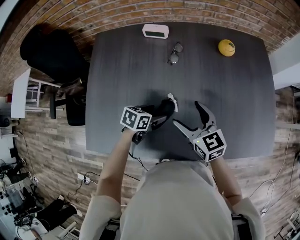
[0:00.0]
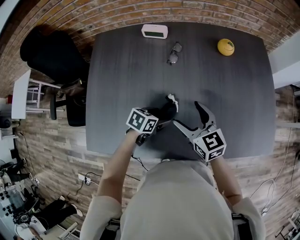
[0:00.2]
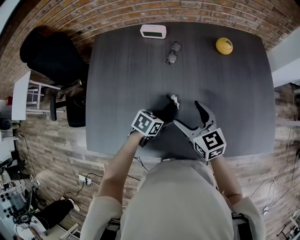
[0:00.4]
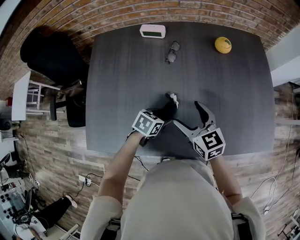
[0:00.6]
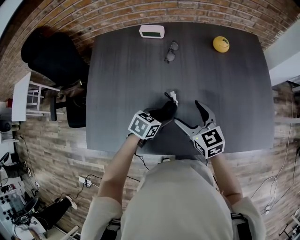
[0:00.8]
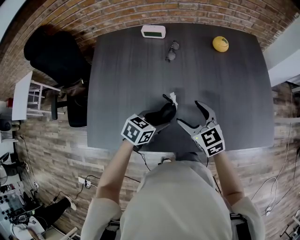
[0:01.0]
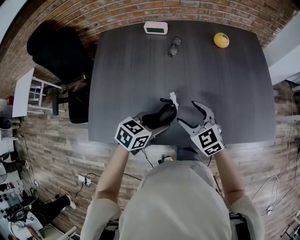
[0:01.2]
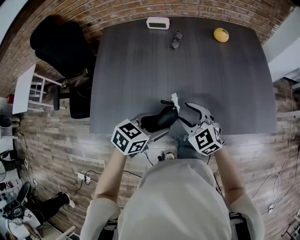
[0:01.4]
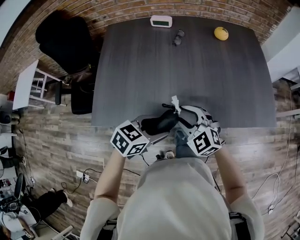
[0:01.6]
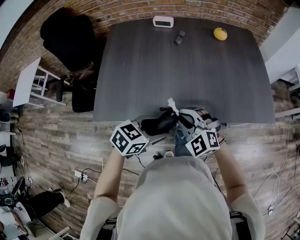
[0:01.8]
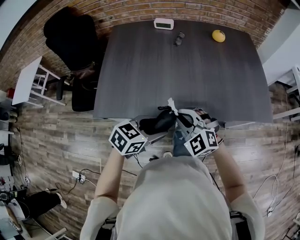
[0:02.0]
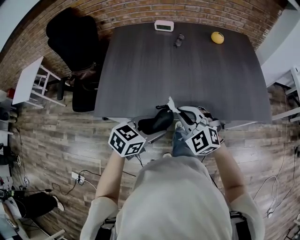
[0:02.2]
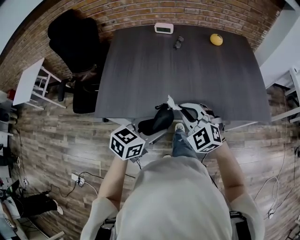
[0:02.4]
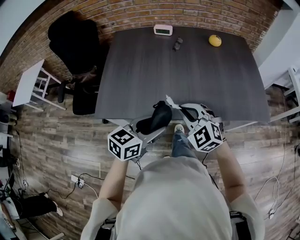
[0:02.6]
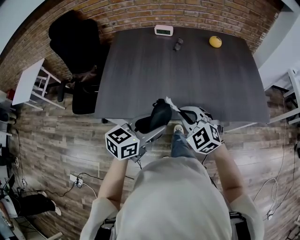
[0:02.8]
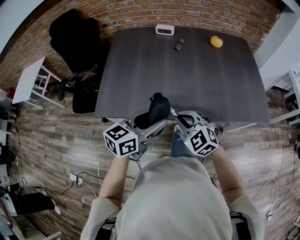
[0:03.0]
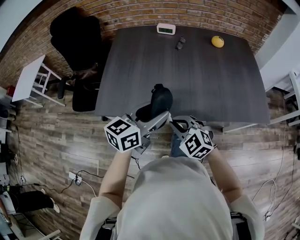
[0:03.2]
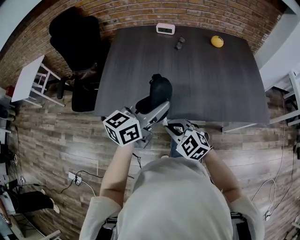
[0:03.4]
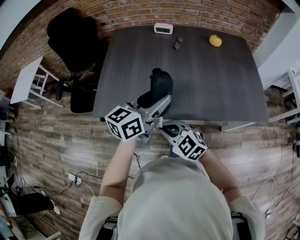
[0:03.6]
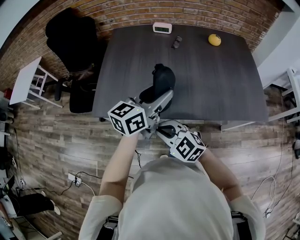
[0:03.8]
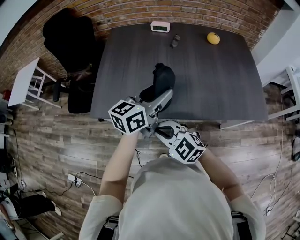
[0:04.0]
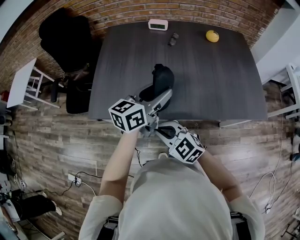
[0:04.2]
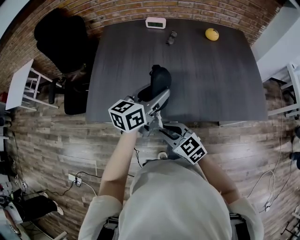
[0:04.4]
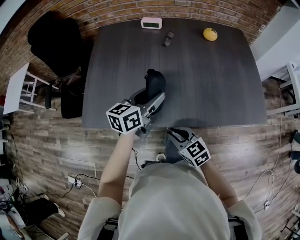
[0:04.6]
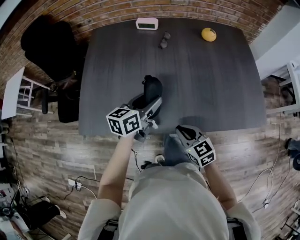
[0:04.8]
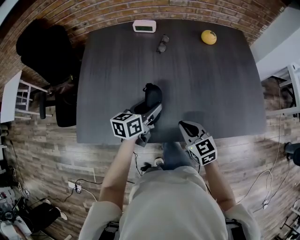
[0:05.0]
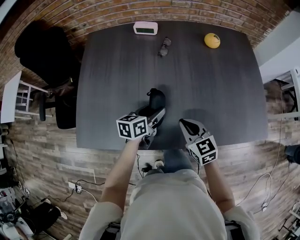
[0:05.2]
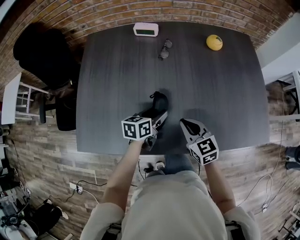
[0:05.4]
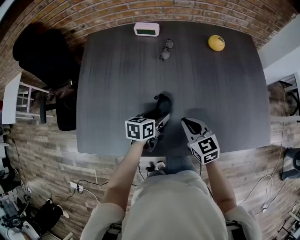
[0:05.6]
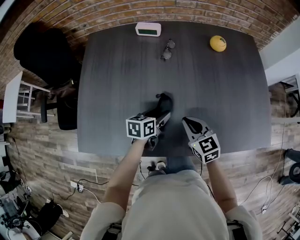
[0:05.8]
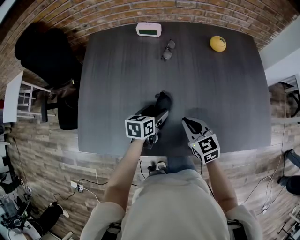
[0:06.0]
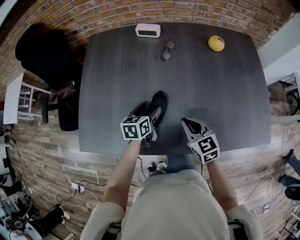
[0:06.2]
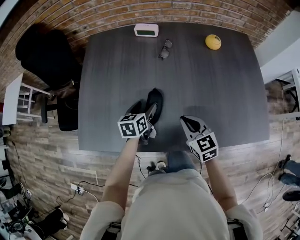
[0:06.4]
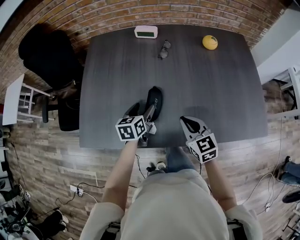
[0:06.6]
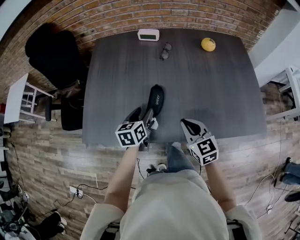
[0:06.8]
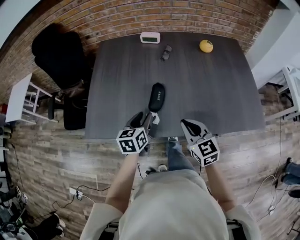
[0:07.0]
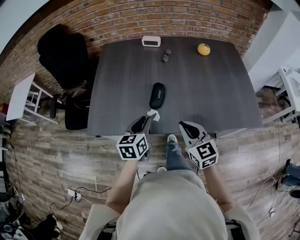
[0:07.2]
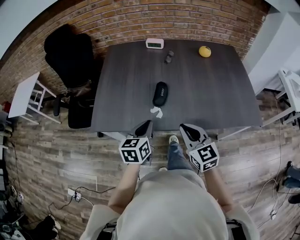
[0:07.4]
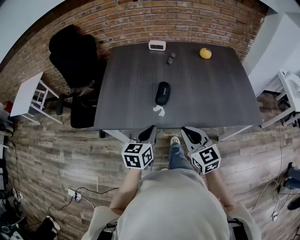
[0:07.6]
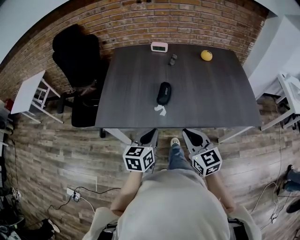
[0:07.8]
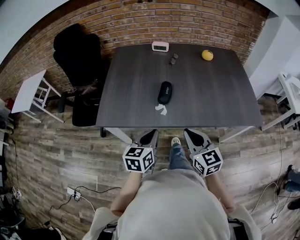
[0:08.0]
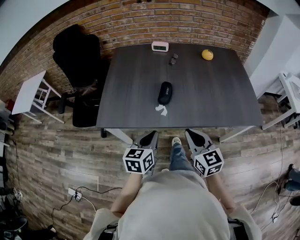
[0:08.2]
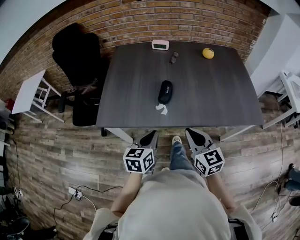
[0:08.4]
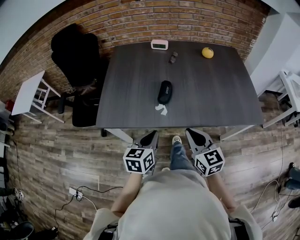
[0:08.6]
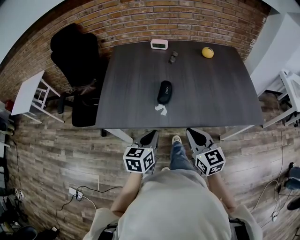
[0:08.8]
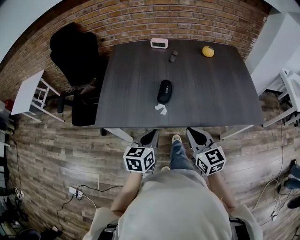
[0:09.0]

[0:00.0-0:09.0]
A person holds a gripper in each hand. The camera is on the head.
0:00.0 to 0:01.6: The right gripper shifts about 20 cm backward, twists approximately 40 degrees counterclockwise, seen from behind, and closes its fingers. The left gripper is displaced backward and upward by about 25 cm, and rotates roughly 20 degrees.
0:01.6 to 0:03.0: The right gripper goes about 10 cm backward, and closes; the left gripper shifts roughly 10 cm upward, and turns by about 30 degrees.
0:03.0 to 0:04.4: The left gripper shifts approximately 15 cm forward. Meanwhile the right gripper shifts about 5 cm downward, reaches approximately 10 cm to the left, then returns, and turns by about 30 degrees.
0:04.4 to 0:06.0: The right gripper moves forward and to the right, some 25 cm, and changes its angle by approximately 20 degrees; the left gripper heads downward and forward, covering roughly 25 cm, and turns by approximately 30 degrees.
0:06.0 to 0:07.6: Both grippers move backward and upward, about 30 cm. The left gripper swivels some 20 degrees, and closes.
0:07.6 to 0:09.0: The grippers make only small movements.

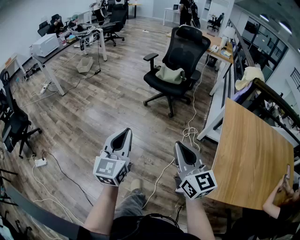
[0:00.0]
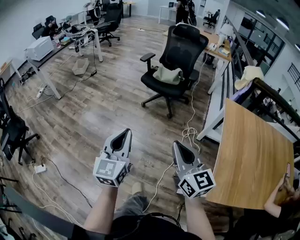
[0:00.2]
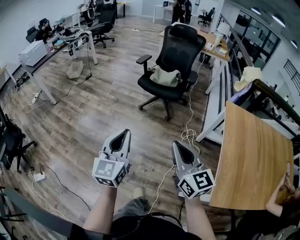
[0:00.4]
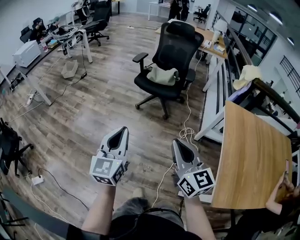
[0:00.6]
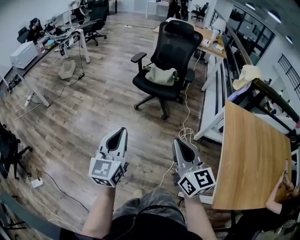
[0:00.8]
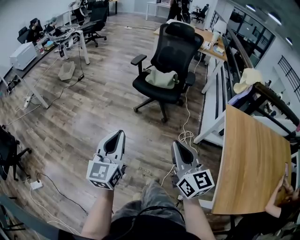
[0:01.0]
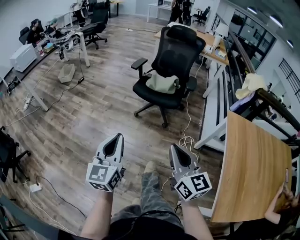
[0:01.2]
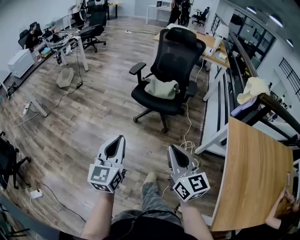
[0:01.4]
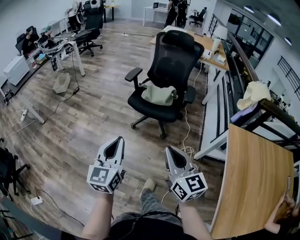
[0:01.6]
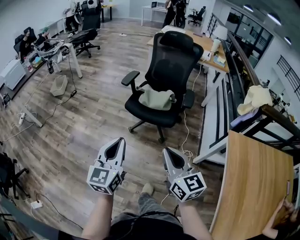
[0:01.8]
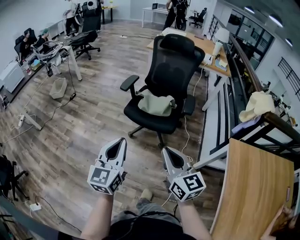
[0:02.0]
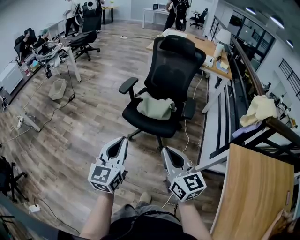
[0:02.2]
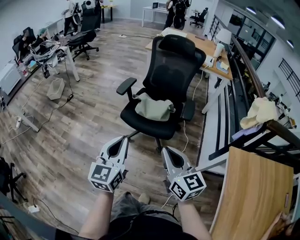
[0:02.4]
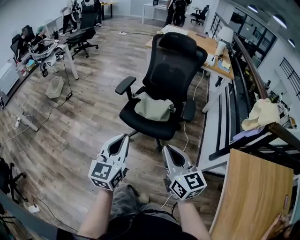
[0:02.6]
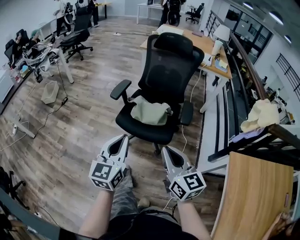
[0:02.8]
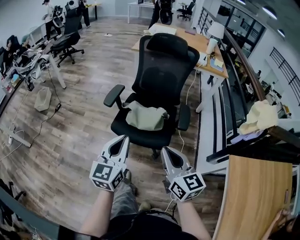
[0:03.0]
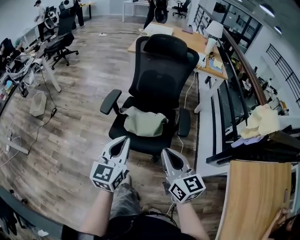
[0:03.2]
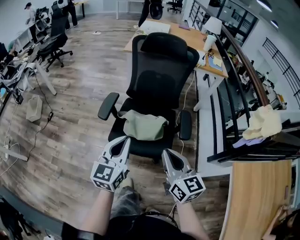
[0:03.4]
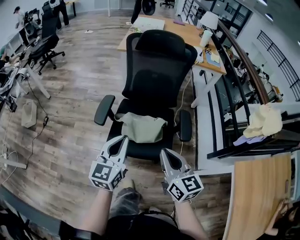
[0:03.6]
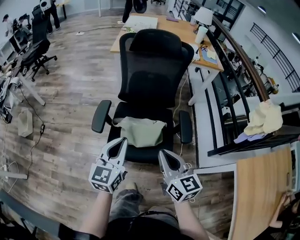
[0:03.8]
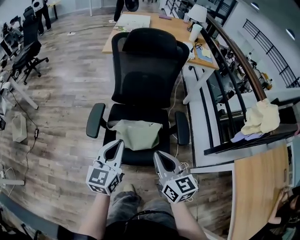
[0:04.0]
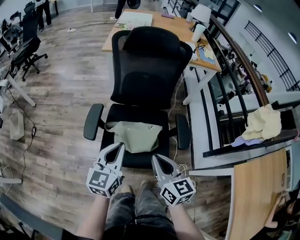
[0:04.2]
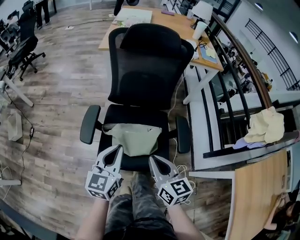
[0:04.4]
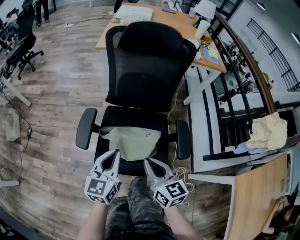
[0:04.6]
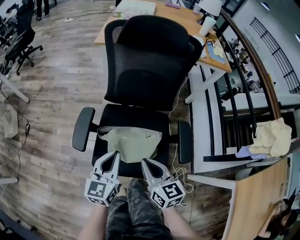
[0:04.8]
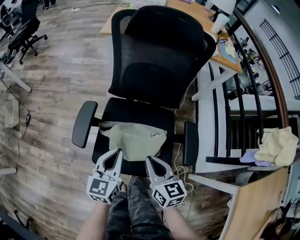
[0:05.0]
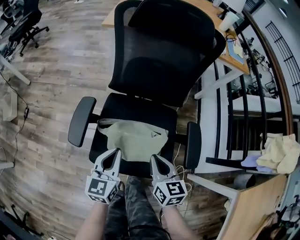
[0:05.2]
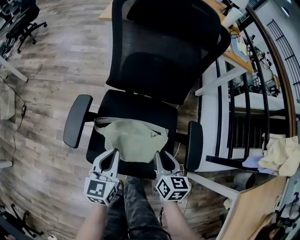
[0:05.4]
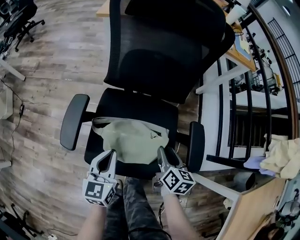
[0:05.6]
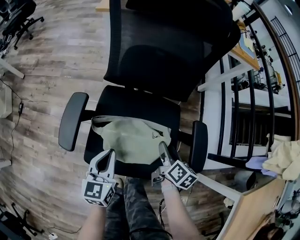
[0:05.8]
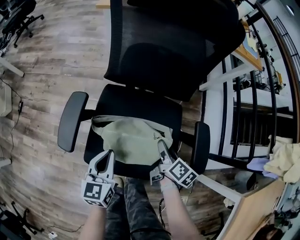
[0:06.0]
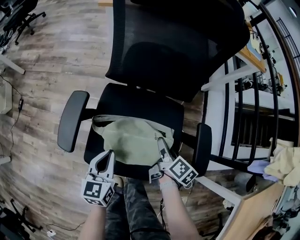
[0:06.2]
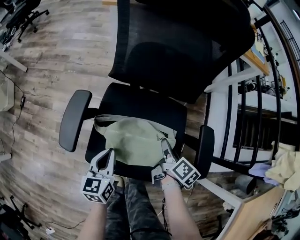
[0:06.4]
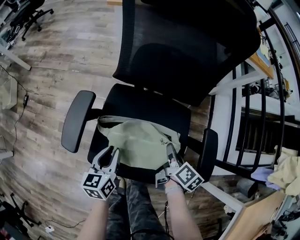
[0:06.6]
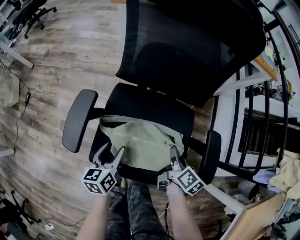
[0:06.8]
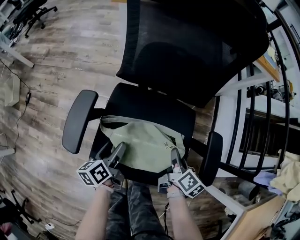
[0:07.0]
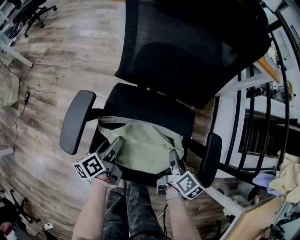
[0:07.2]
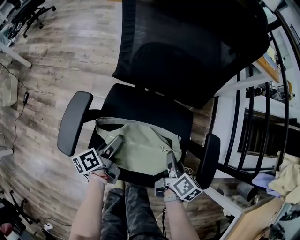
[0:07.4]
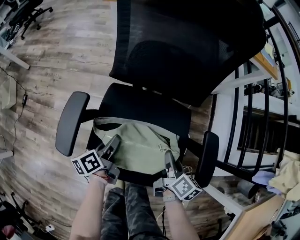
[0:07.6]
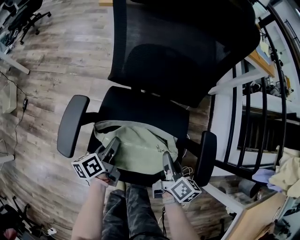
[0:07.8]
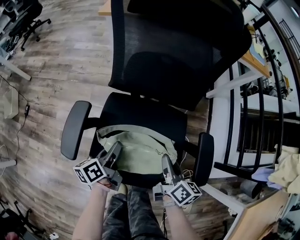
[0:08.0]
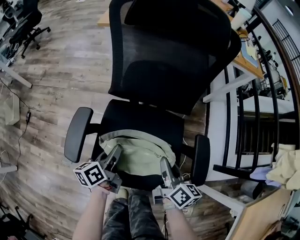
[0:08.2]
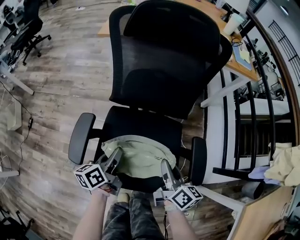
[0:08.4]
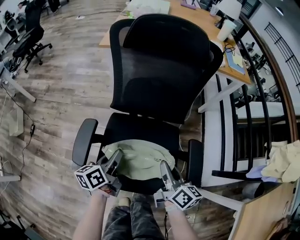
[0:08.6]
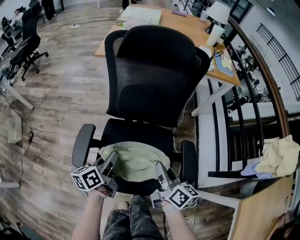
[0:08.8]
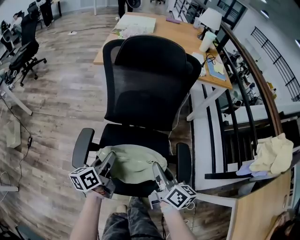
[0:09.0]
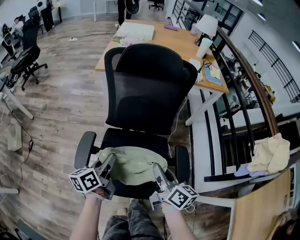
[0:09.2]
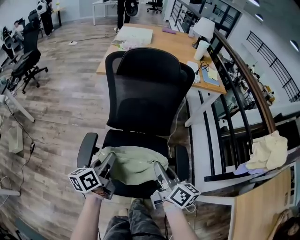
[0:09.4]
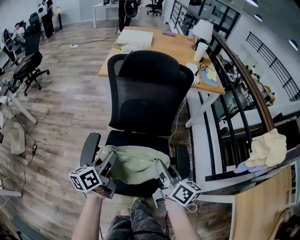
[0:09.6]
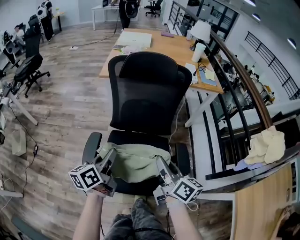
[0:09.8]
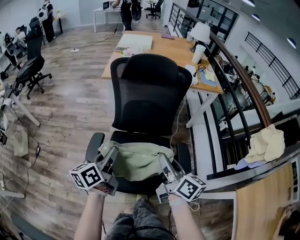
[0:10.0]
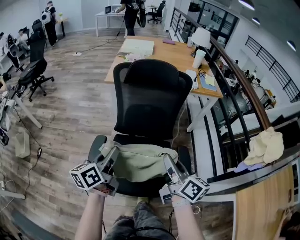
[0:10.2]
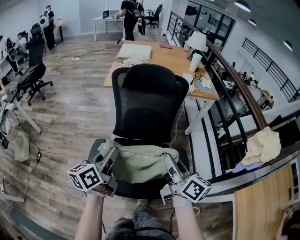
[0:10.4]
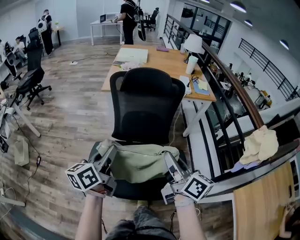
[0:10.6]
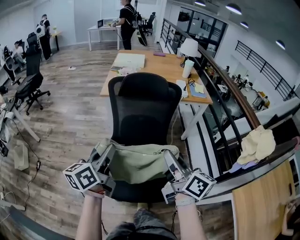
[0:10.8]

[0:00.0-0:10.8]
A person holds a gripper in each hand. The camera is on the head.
0:00.0 to 0:01.6: The two grippers go some 30 cm forward.
0:01.6 to 0:03.0: Both grippers move forward, about 30 cm.
0:03.0 to 0:04.6: The two grippers go approximately 30 cm forward and downward.
0:04.6 to 0:06.2: The left gripper travels downward by roughly 20 cm. The right gripper goes roughly 25 cm downward and forward, twists approximately 50 degrees clockwise, seen from behind, and opens.
0:06.2 to 0:07.8: The left gripper shifts some 10 cm downward and forward, twists some 40 degrees counterclockwise, seen from behind, and opens and closes again. Meanwhile the right gripper closes.
0:07.8 to 0:09.2: The grippers both shift upward by about 20 cm.
0:09.2 to 0:10.8: The grippers both shift upward by roughly 20 cm.

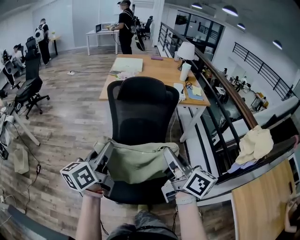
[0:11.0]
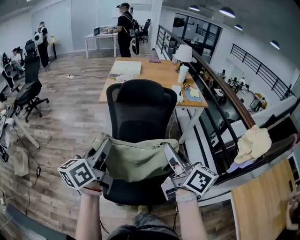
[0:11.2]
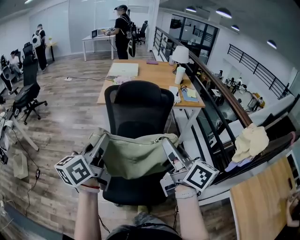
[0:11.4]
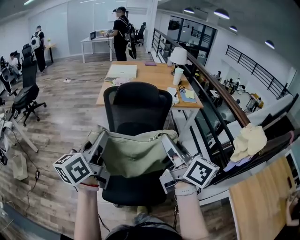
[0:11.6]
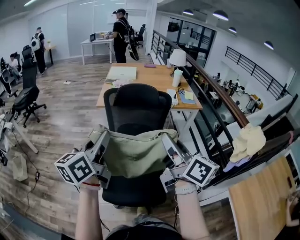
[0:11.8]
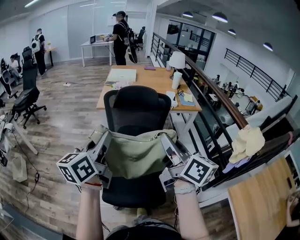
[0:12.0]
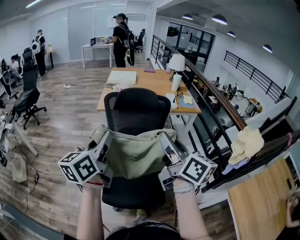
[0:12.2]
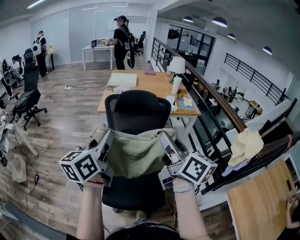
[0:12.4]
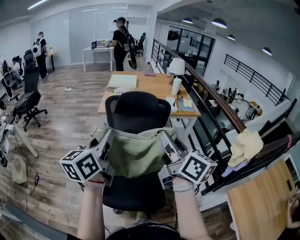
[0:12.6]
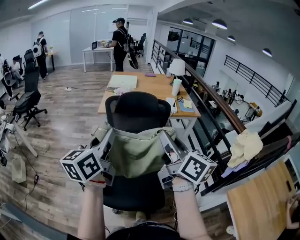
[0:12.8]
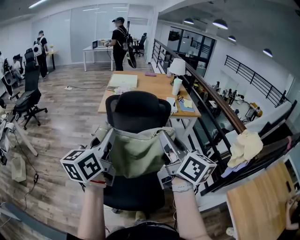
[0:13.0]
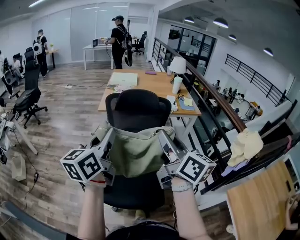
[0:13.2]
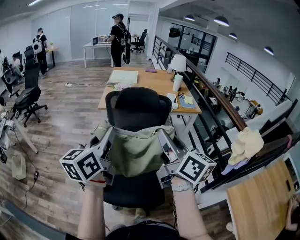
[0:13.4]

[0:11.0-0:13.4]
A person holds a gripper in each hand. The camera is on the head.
0:11.0 to 0:12.2: The two grippers go some 10 cm upward.
0:12.2 to 0:13.4: There are only small adjustments of the grippers.

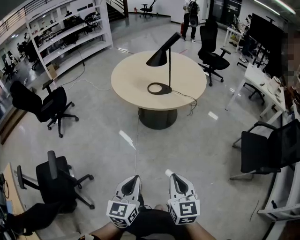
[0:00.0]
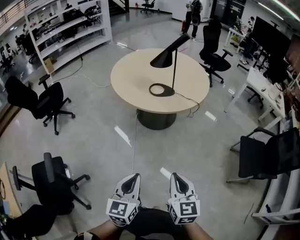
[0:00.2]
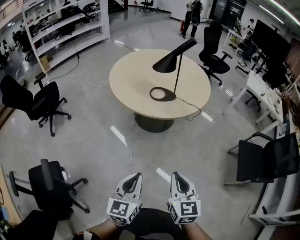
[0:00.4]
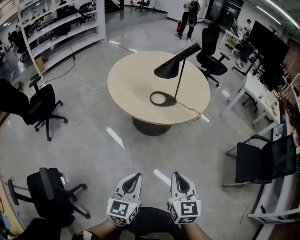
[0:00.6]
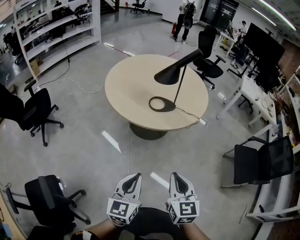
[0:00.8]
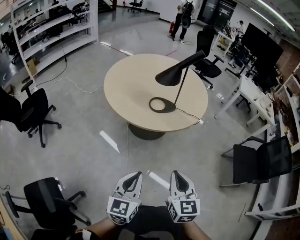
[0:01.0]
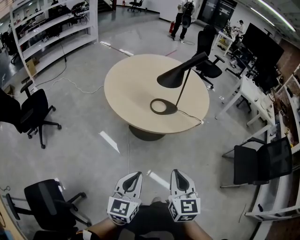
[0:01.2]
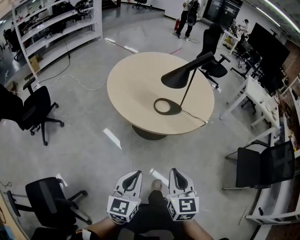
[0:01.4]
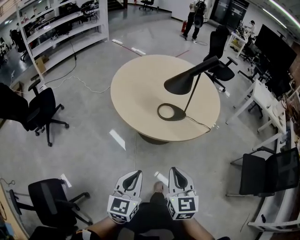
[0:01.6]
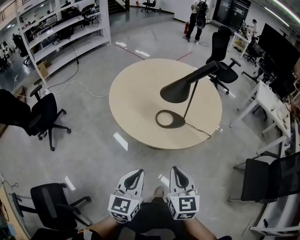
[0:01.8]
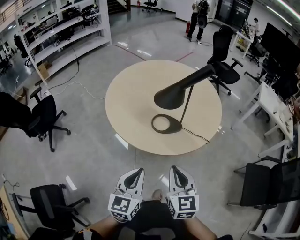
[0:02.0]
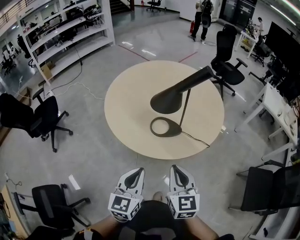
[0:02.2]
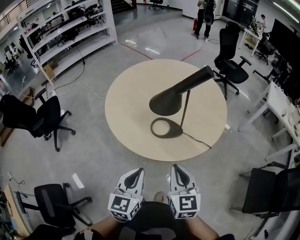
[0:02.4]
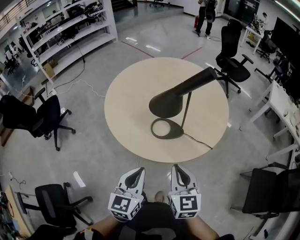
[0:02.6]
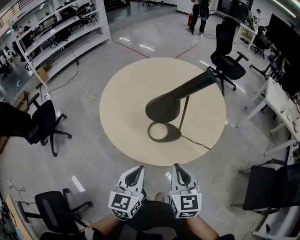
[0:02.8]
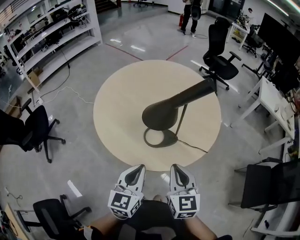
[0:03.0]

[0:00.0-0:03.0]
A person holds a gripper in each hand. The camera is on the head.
0:00.0 to 0:01.6: Both grippers are carried forward and to the left, approximately 40 cm.
0:01.6 to 0:03.0: The two grippers go roughly 30 cm forward.
